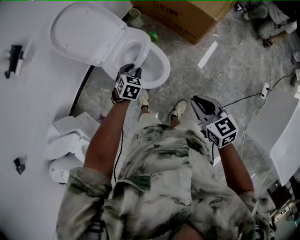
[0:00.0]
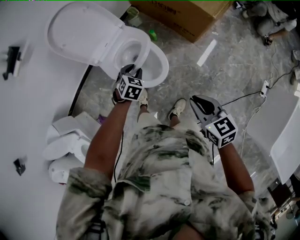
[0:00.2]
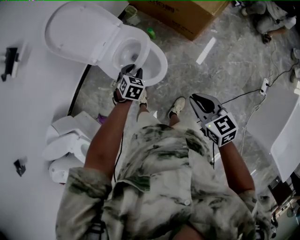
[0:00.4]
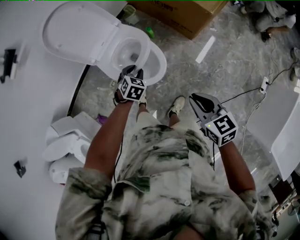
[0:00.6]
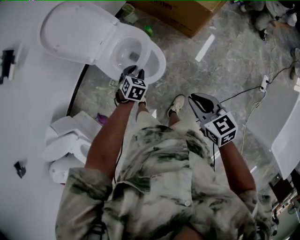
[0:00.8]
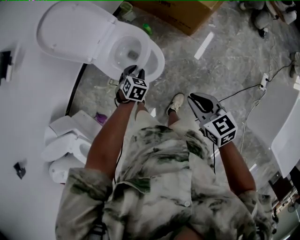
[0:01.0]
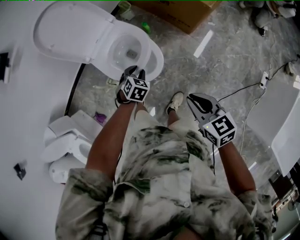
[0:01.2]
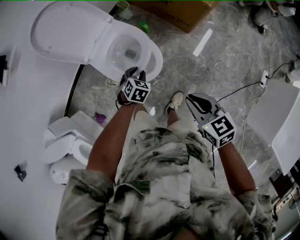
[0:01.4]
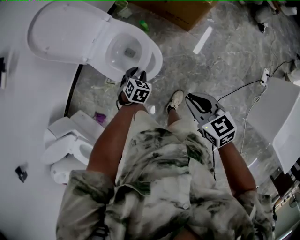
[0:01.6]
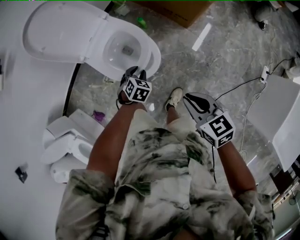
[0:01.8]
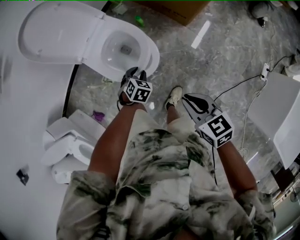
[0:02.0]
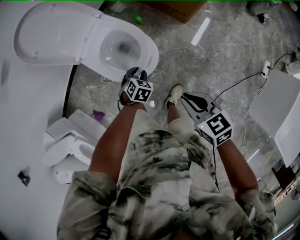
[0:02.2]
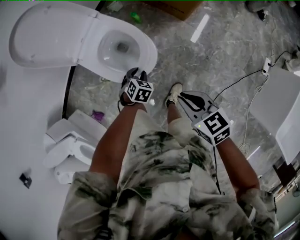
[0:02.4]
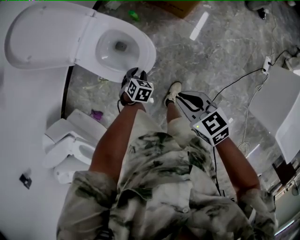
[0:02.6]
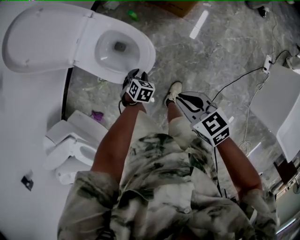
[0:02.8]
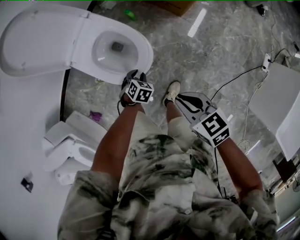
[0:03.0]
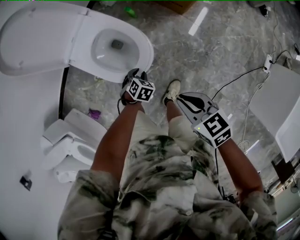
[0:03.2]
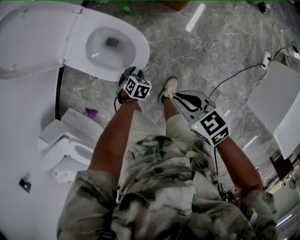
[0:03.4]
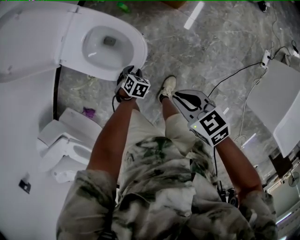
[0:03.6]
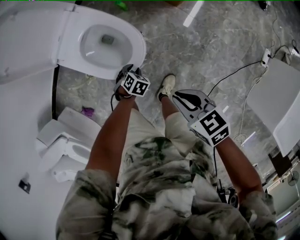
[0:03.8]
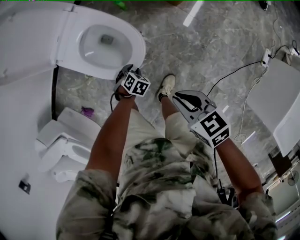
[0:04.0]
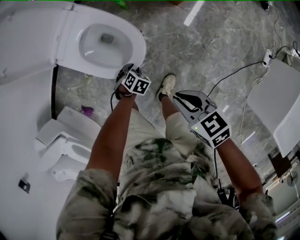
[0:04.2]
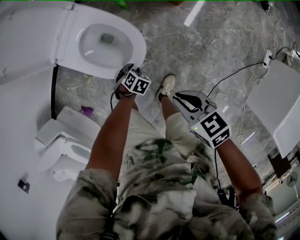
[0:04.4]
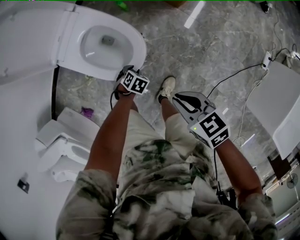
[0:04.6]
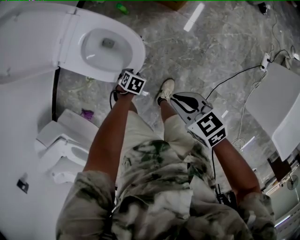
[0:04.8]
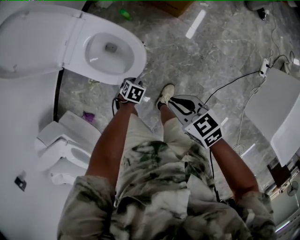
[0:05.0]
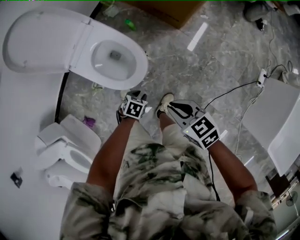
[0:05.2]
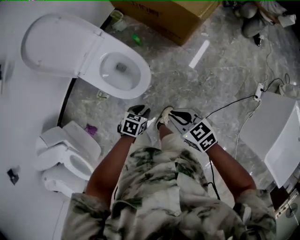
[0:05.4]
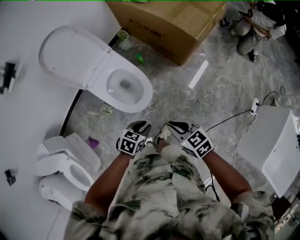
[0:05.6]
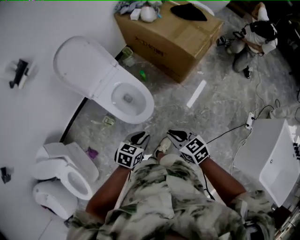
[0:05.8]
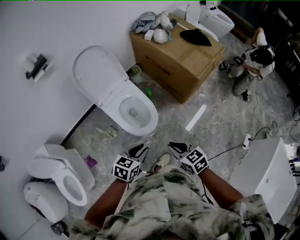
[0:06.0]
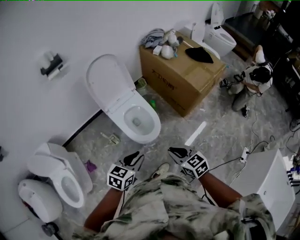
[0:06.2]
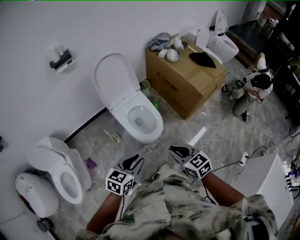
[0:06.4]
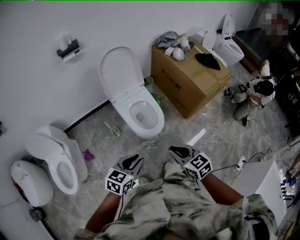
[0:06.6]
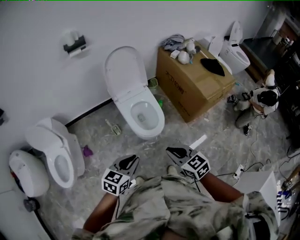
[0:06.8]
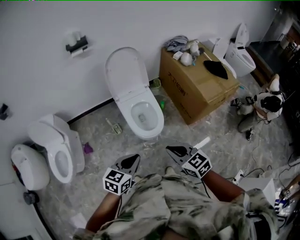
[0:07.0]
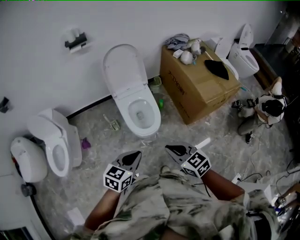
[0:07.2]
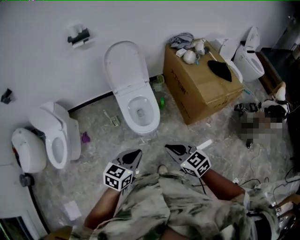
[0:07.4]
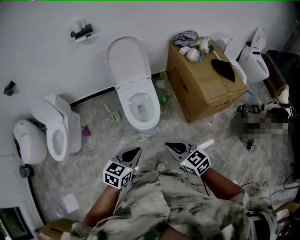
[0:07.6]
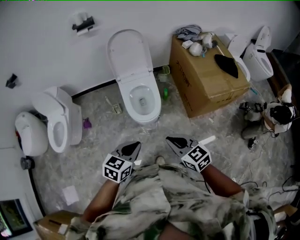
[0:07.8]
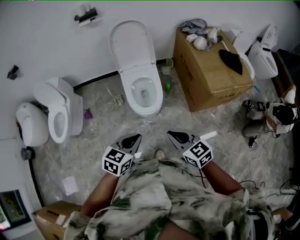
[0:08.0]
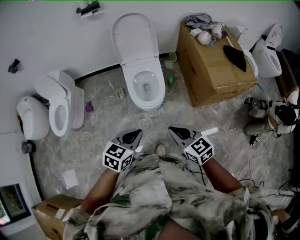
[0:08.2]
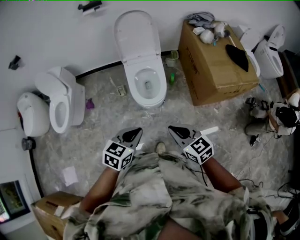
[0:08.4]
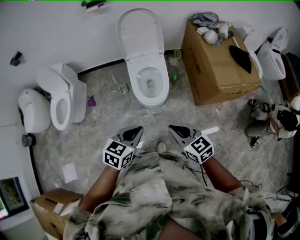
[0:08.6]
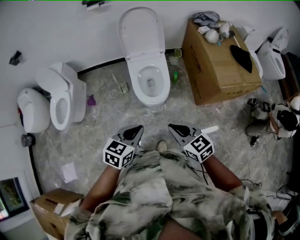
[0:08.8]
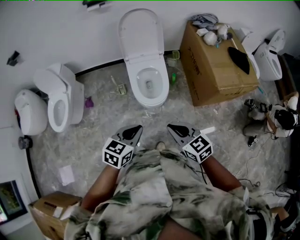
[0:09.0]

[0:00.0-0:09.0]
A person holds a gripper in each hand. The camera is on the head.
0:00.0 to 0:01.6: The left gripper travels downward and backward by roughly 10 cm, while the right gripper ends up some 5 cm from where it was.
0:01.6 to 0:03.0: The grippers both shift downward by roughly 10 cm.
0:03.0 to 0:04.4: The two grippers go about 10 cm downward.
0:04.4 to 0:06.0: The right gripper is displaced upward by approximately 25 cm, and changes its angle by about 20 degrees; the left gripper moves upward, some 50 cm, and points its fingers about 40 degrees further upward.
0:06.0 to 0:07.6: The right gripper heads upward, covering approximately 10 cm, and turns by some 30 degrees. The left gripper moves approximately 20 cm, turns by approximately 30 degrees, and closes its fingers.
0:07.6 to 0:09.0: There are only small adjustments of the grippers.

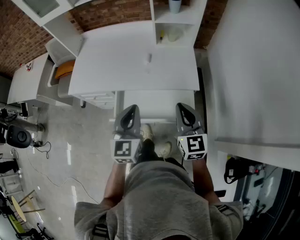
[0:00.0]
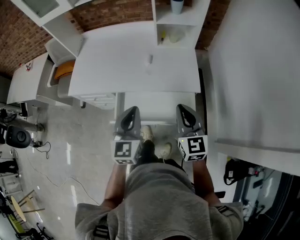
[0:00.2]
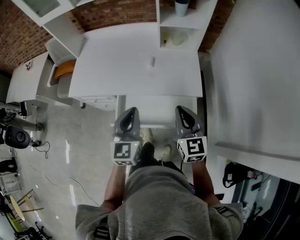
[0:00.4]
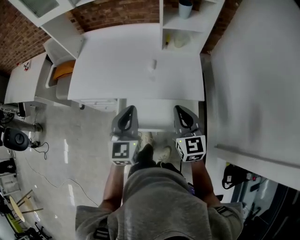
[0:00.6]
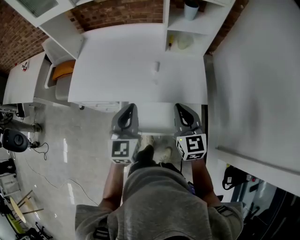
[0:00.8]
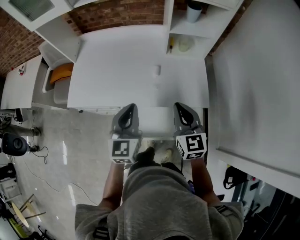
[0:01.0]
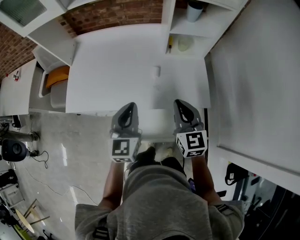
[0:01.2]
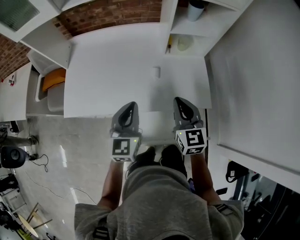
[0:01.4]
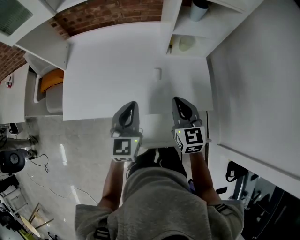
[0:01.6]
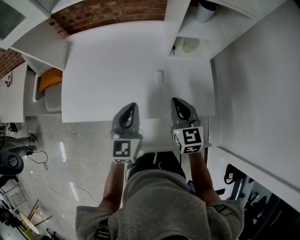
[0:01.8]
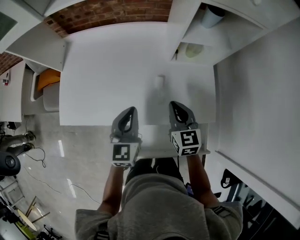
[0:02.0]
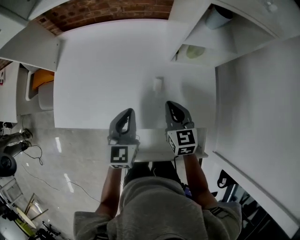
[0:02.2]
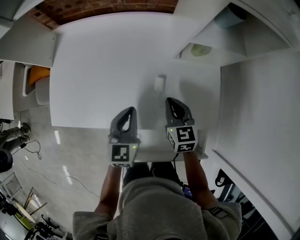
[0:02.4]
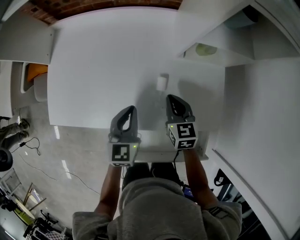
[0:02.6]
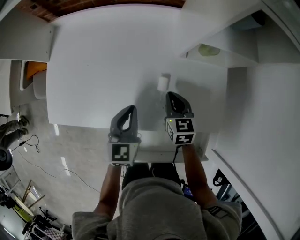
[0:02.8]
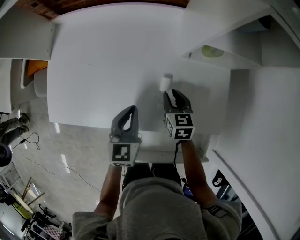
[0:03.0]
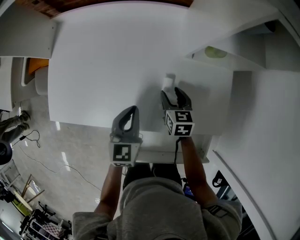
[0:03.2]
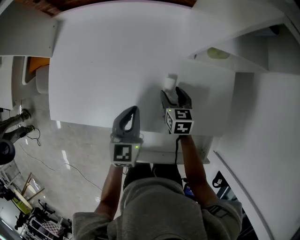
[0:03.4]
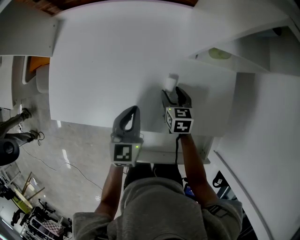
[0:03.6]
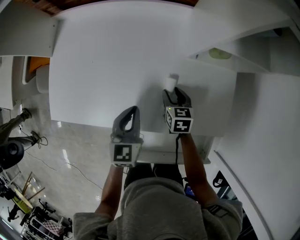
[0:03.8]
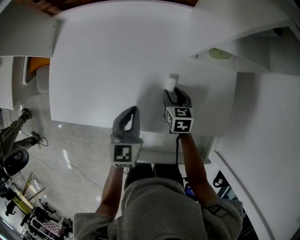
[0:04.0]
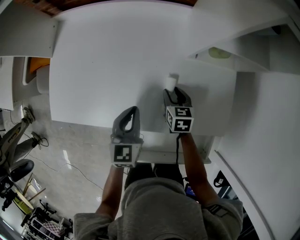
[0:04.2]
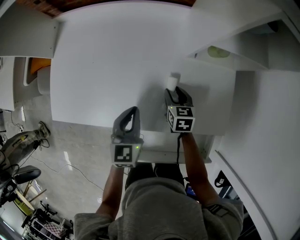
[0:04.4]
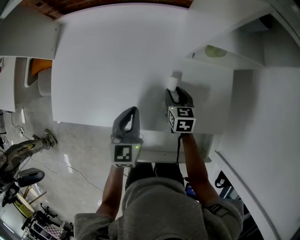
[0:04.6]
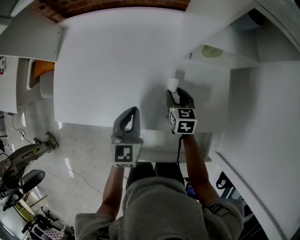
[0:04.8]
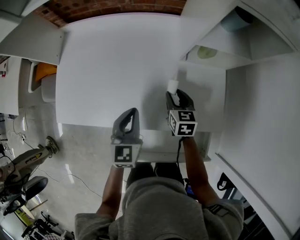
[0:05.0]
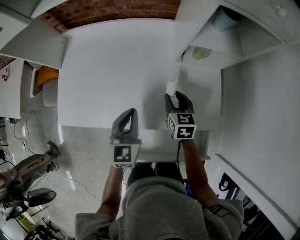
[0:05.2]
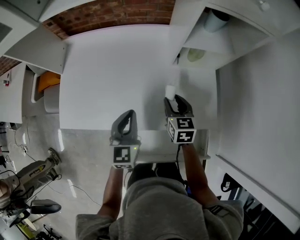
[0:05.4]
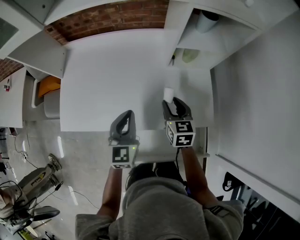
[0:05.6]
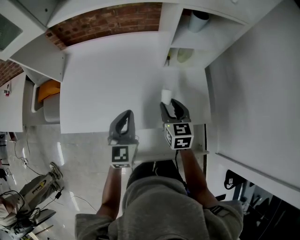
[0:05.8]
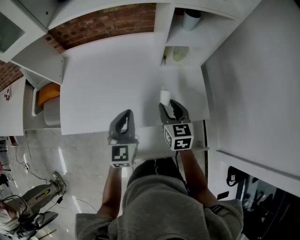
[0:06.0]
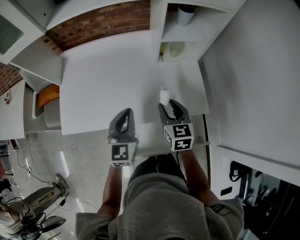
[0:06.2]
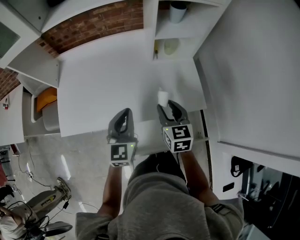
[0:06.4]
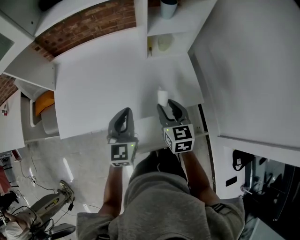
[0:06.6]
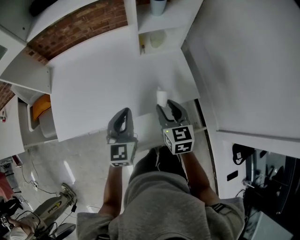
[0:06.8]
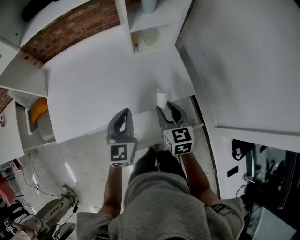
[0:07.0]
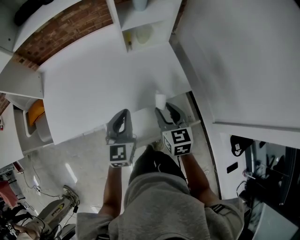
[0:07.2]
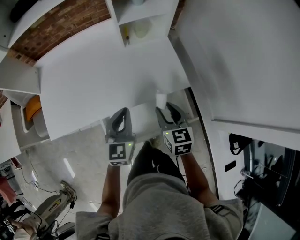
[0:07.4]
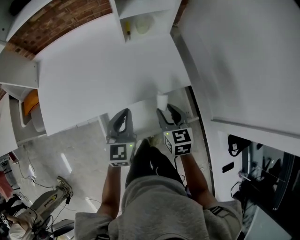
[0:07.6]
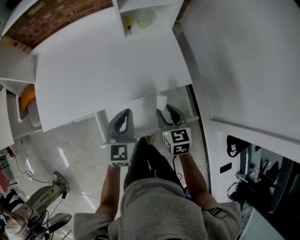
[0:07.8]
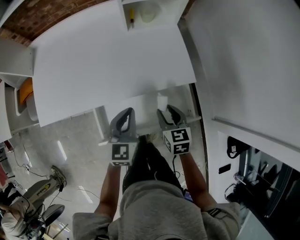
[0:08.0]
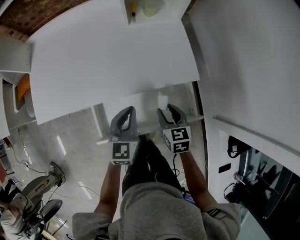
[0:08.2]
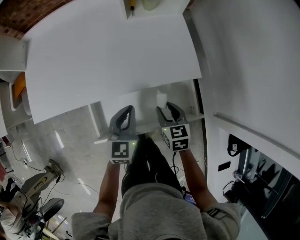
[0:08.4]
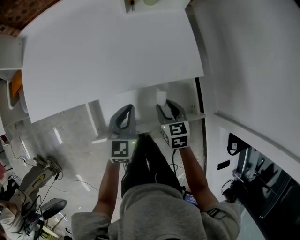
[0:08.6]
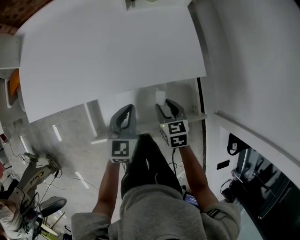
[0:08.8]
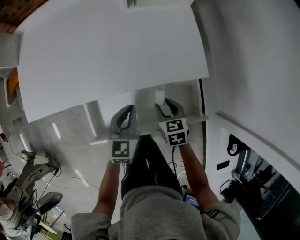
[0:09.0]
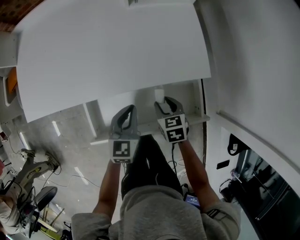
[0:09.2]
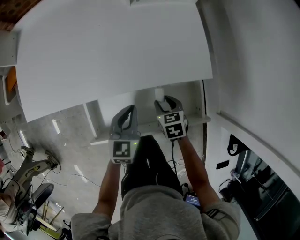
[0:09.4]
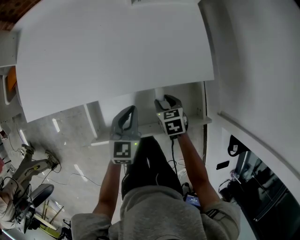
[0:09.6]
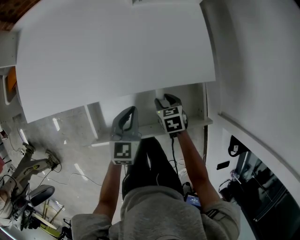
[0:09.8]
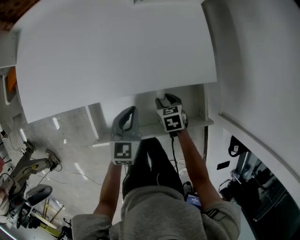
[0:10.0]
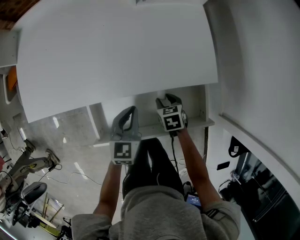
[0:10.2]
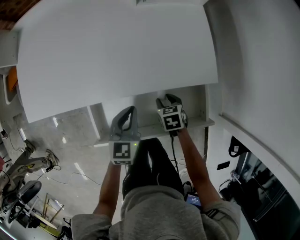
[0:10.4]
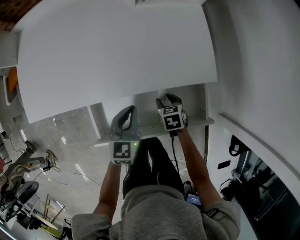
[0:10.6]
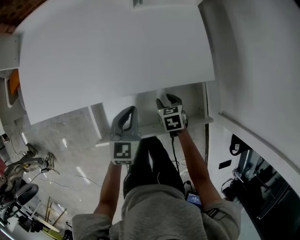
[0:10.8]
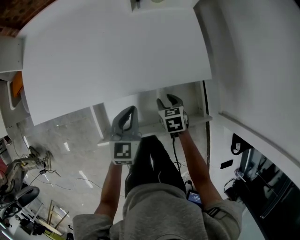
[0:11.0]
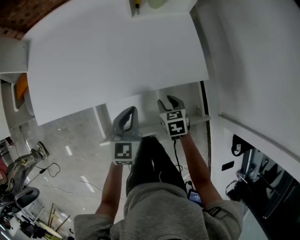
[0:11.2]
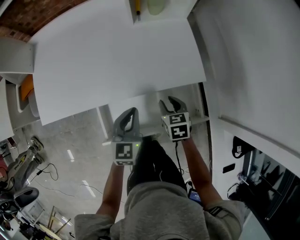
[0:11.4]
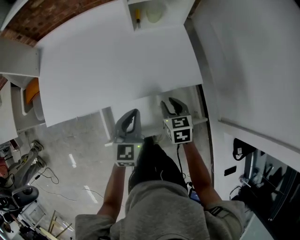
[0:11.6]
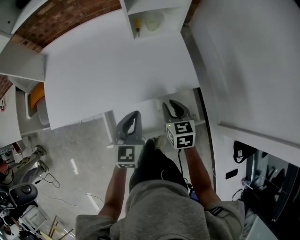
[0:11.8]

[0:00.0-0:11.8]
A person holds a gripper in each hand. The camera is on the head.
0:00.0 to 0:01.4: Both grippers move forward and to the left, roughly 25 cm.
0:01.4 to 0:03.0: The two grippers go some 25 cm downward and forward. The right gripper swivels about 30 degrees, and opens its fingers.
0:03.0 to 0:04.4: The grippers stay close to where they were, moving slightly.
0:04.4 to 0:06.0: The right gripper goes some 25 cm upward and backward, and rotates roughly 20 degrees; the left gripper travels upward and backward by some 15 cm.
0:06.0 to 0:07.4: The right gripper is displaced backward and to the right by approximately 20 cm. Meanwhile the left gripper travels to the right and backward by some 15 cm.
0:07.4 to 0:08.8: The two grippers go approximately 20 cm downward. The right gripper turns by some 20 degrees.
0:08.8 to 0:10.4: The left gripper moves about 5 cm, while the right gripper moves downward, some 10 cm.
0:10.4 to 0:11.8: The right gripper goes approximately 25 cm upward, and changes its angle by about 30 degrees, while the left gripper heads upward, covering approximately 15 cm.

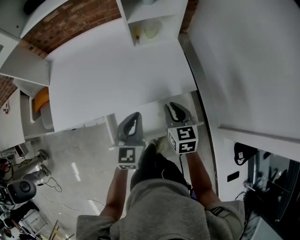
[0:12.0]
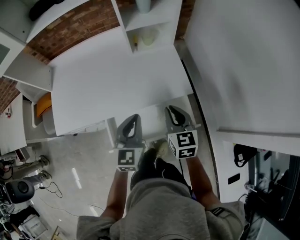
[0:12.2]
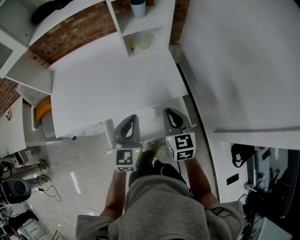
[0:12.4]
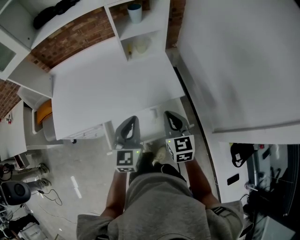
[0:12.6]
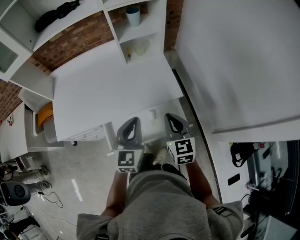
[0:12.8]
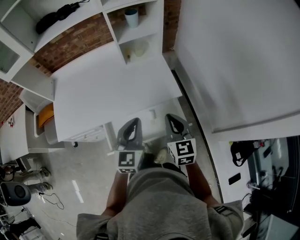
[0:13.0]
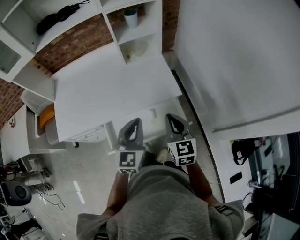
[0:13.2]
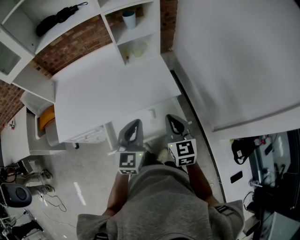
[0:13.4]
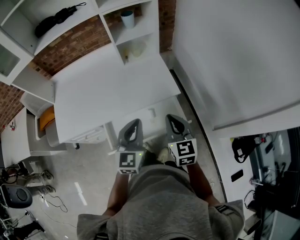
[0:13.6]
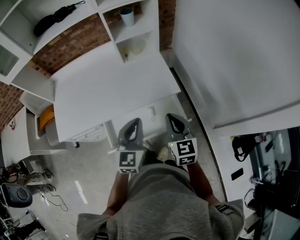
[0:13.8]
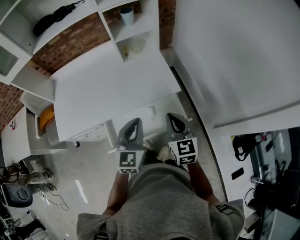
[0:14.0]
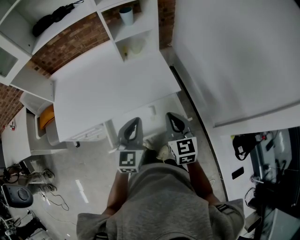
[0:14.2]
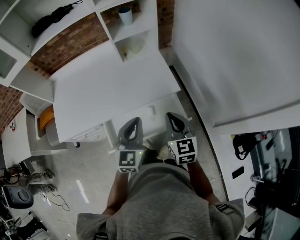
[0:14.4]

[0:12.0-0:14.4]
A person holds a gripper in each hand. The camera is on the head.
0:12.0 to 0:13.2: The right gripper shifts some 15 cm upward and backward. The left gripper shifts approximately 10 cm upward, backward and to the right.
0:13.2 to 0:14.4: The two grippers keep their place.
